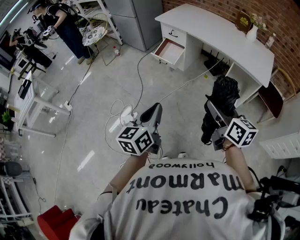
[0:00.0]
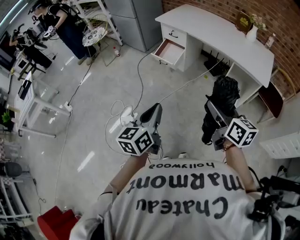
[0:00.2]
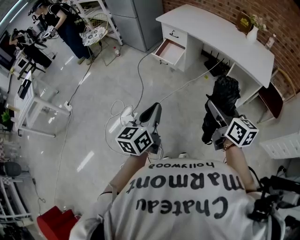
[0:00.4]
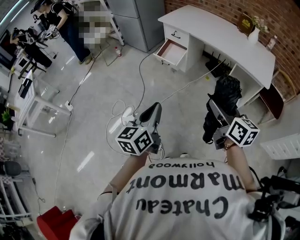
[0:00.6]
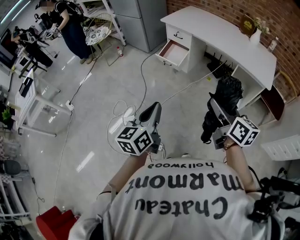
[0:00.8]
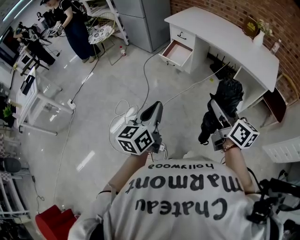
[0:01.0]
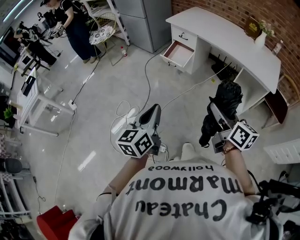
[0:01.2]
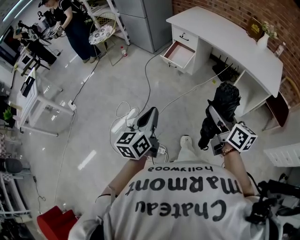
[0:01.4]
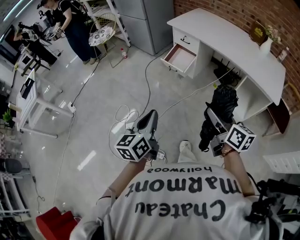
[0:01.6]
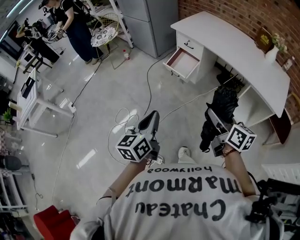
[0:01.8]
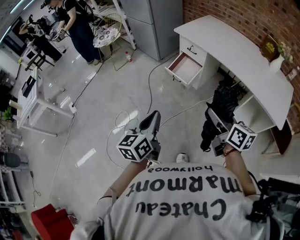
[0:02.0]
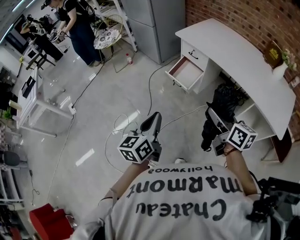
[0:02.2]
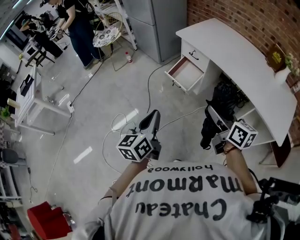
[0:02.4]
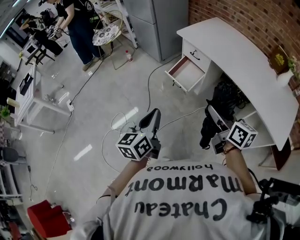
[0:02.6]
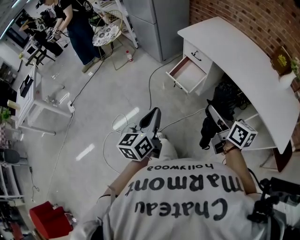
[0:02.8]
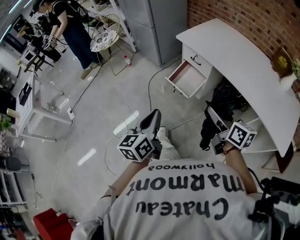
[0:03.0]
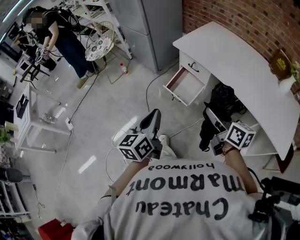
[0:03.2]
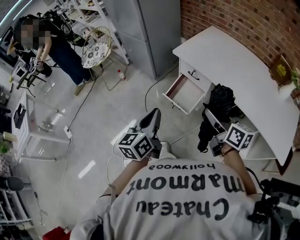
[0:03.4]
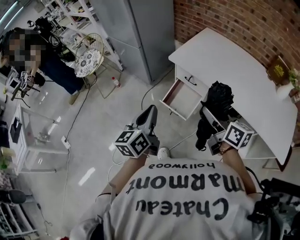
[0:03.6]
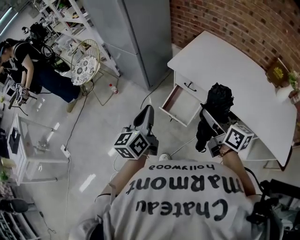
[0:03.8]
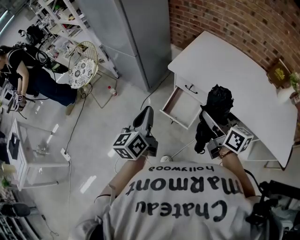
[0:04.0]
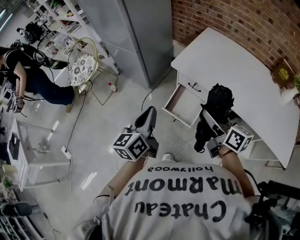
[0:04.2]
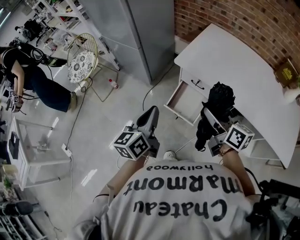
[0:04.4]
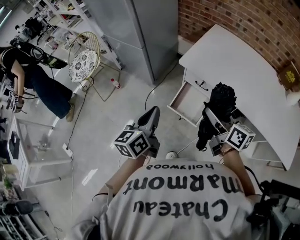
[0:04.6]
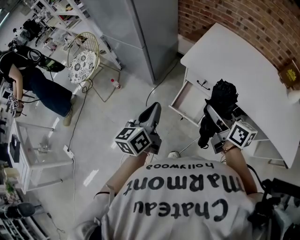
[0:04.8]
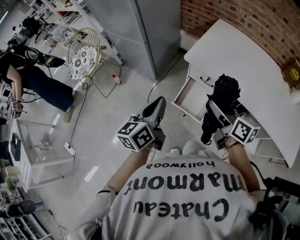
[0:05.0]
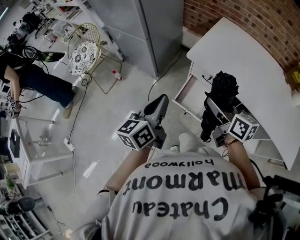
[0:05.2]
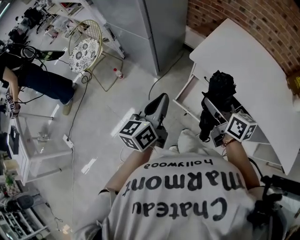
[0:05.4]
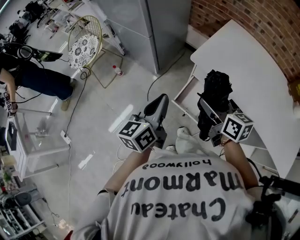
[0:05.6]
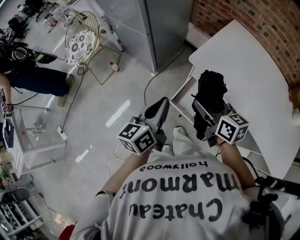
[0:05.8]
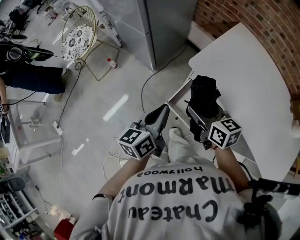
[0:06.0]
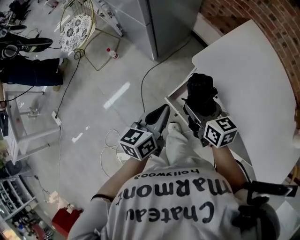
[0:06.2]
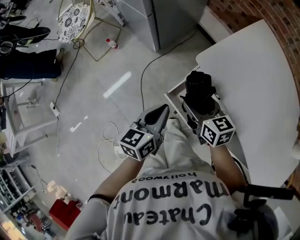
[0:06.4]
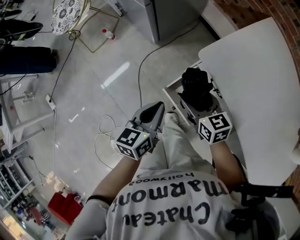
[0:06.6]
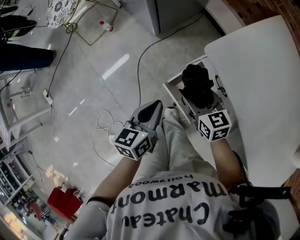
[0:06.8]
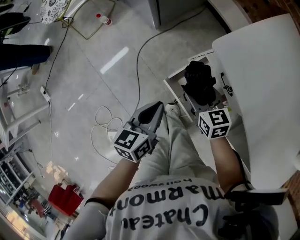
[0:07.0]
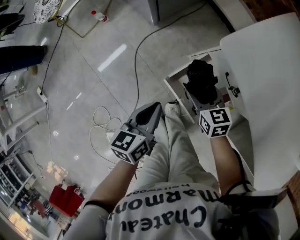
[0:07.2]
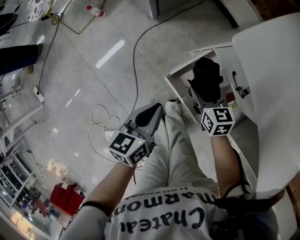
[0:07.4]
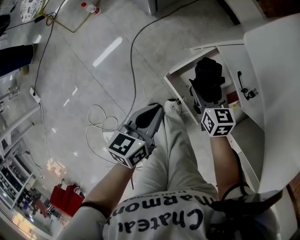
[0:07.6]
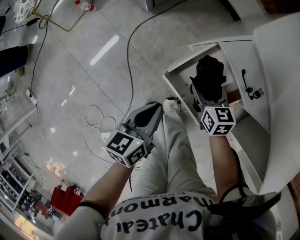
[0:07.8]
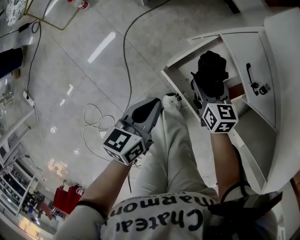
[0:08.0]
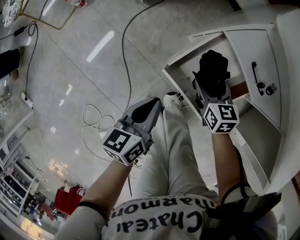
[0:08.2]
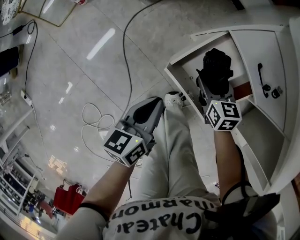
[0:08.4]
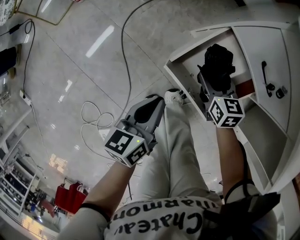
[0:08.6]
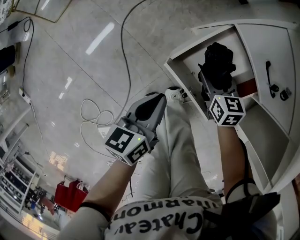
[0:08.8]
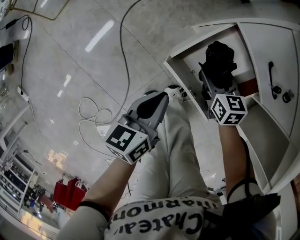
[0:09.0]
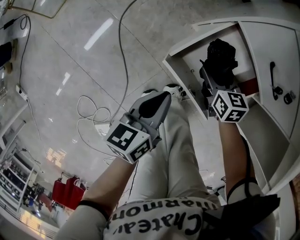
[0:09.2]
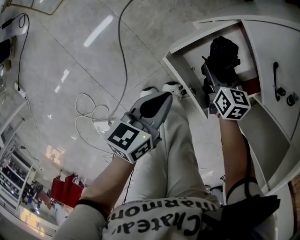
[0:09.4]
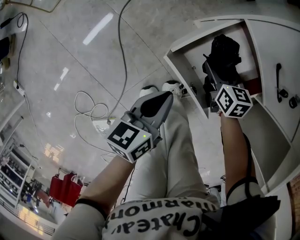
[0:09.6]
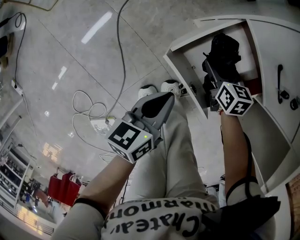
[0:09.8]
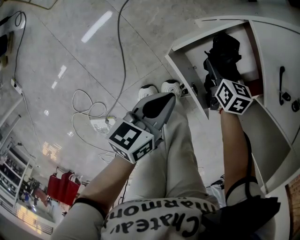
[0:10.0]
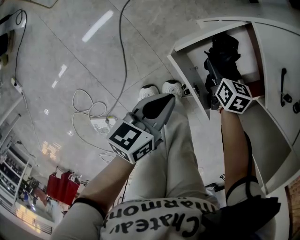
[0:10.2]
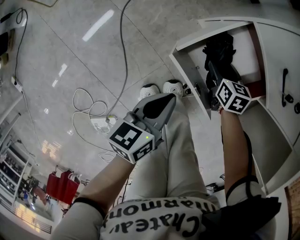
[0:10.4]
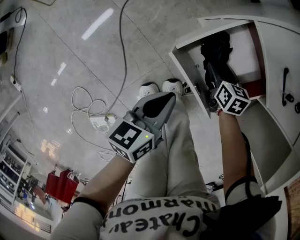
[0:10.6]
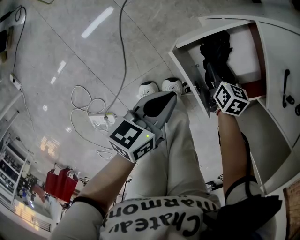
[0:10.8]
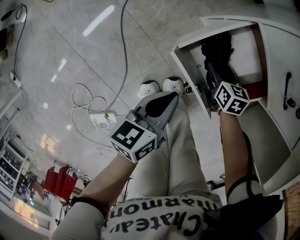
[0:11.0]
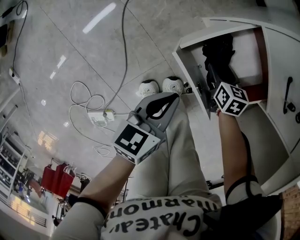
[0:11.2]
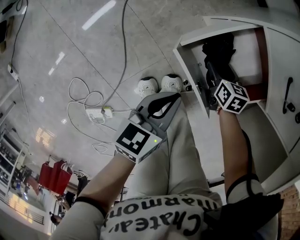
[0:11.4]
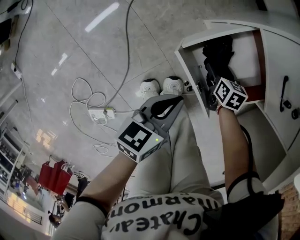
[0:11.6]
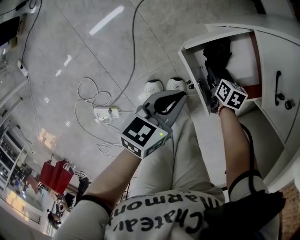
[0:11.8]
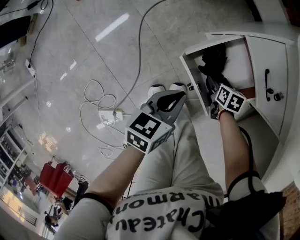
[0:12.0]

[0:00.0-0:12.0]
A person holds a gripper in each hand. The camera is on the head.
0:00.0 to 0:01.6: The right gripper heads forward and to the left, covering roughly 10 cm, while the left gripper goes approximately 10 cm to the left and forward.
0:01.6 to 0:03.0: Both grippers move forward, roughly 30 cm.
0:03.0 to 0:04.4: Both grippers move forward, some 30 cm.
0:04.4 to 0:06.0: The right gripper shifts about 20 cm forward, downward and to the left, and swivels roughly 30 degrees, while the left gripper shifts some 15 cm forward and downward.
0:06.0 to 0:07.6: Both grippers travel together downward, roughly 35 cm.
0:07.6 to 0:09.0: The grippers both shift downward by roughly 10 cm.
0:09.0 to 0:10.4: The right gripper goes about 5 cm downward.
0:10.4 to 0:12.0: The right gripper changes place by approximately 5 cm. The left gripper goes approximately 5 cm upward.

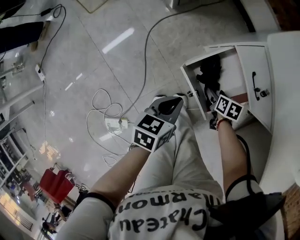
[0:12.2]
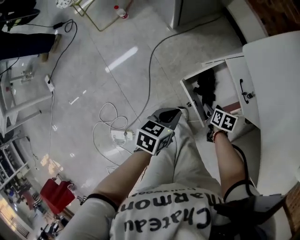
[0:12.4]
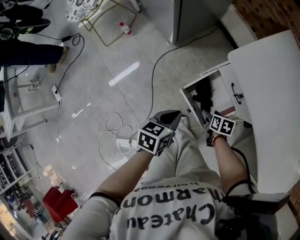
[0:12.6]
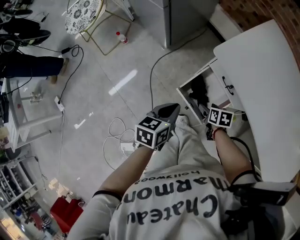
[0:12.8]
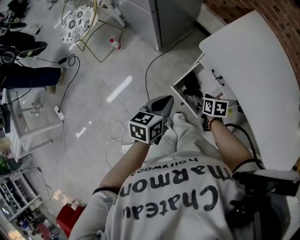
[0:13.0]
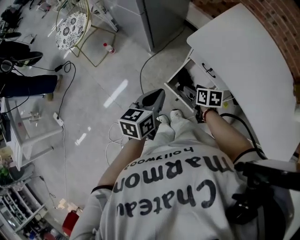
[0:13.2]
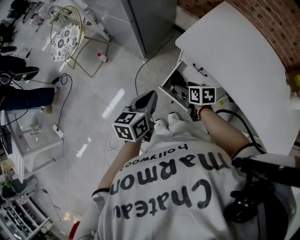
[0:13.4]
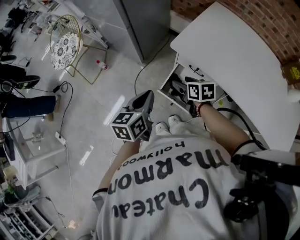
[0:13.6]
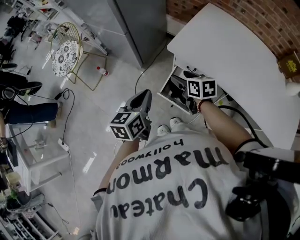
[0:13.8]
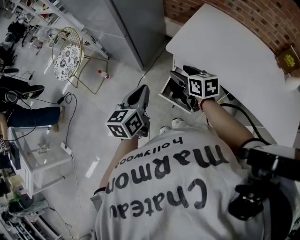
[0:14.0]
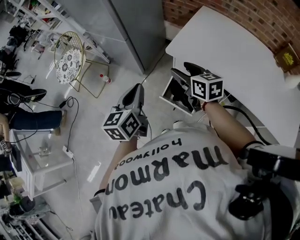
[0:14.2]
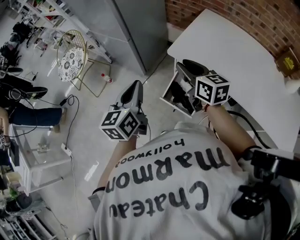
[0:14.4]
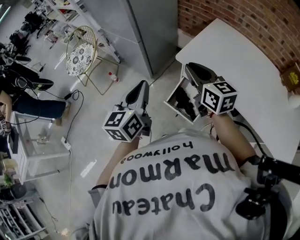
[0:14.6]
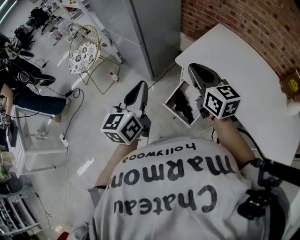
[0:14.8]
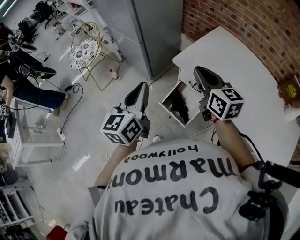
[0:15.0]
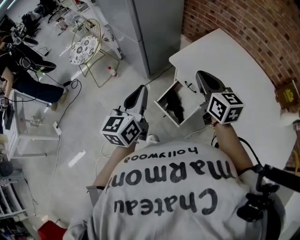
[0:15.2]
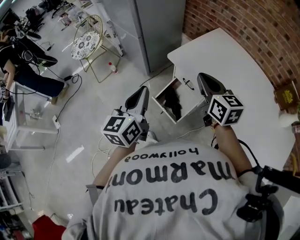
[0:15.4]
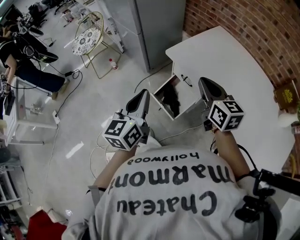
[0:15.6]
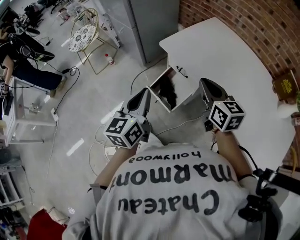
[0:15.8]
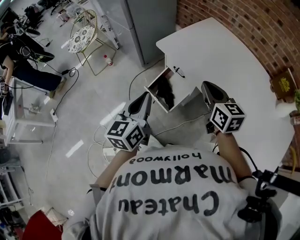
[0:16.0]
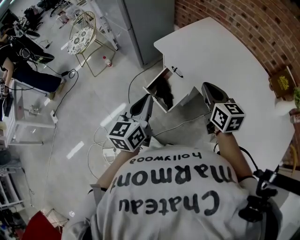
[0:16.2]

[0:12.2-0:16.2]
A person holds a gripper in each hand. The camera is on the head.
0:12.2 to 0:13.6: The two grippers go approximately 35 cm upward. The left gripper changes its angle by approximately 20 degrees, while the right gripper turns by roughly 30 degrees.
0:13.6 to 0:14.8: The right gripper moves upward, roughly 25 cm, tilts its fingers about 30 degrees upward, and closes up, while the left gripper is displaced upward by about 15 cm, and swivels some 30 degrees.
0:14.8 to 0:16.2: The grippers both shift to the right and backward by roughly 25 cm.

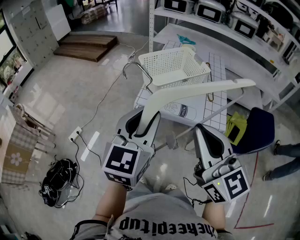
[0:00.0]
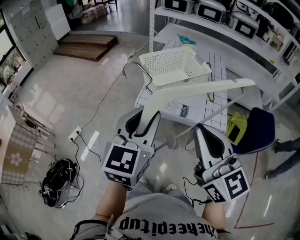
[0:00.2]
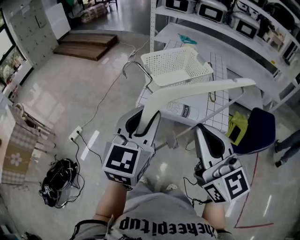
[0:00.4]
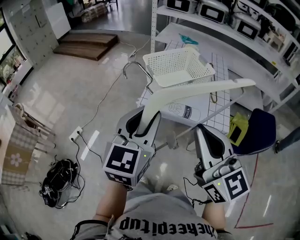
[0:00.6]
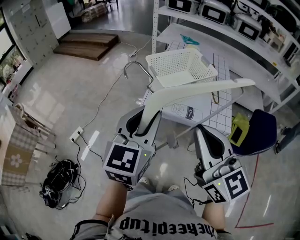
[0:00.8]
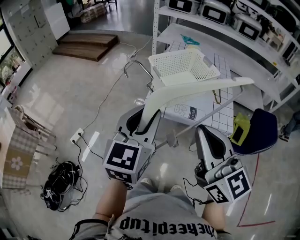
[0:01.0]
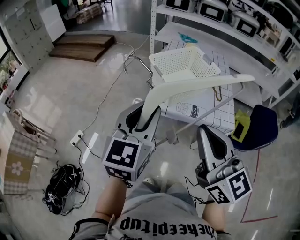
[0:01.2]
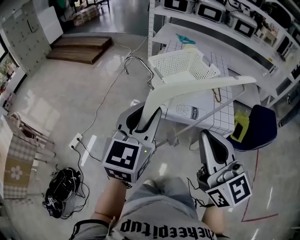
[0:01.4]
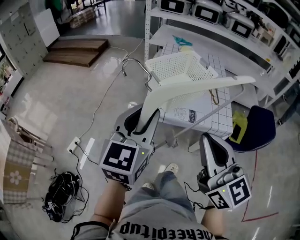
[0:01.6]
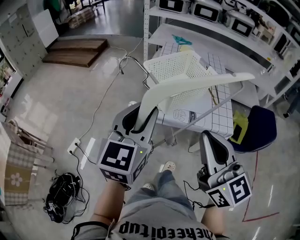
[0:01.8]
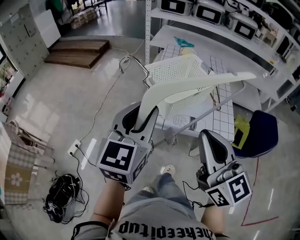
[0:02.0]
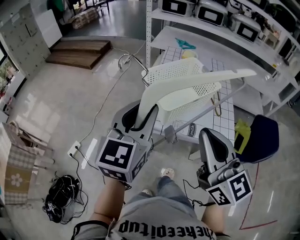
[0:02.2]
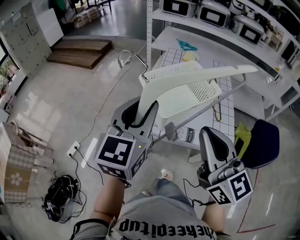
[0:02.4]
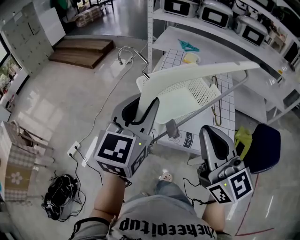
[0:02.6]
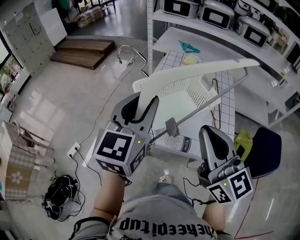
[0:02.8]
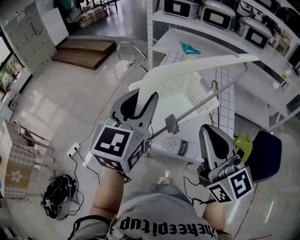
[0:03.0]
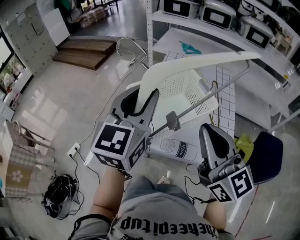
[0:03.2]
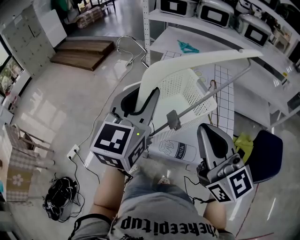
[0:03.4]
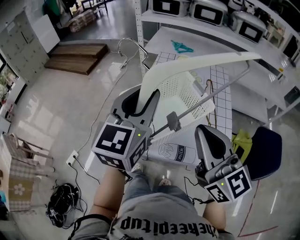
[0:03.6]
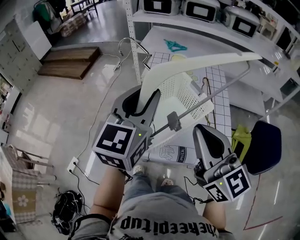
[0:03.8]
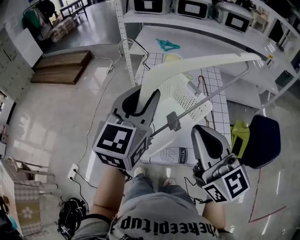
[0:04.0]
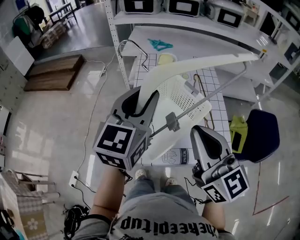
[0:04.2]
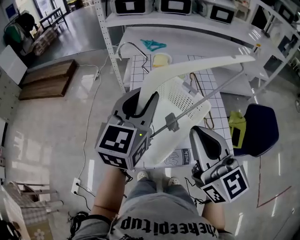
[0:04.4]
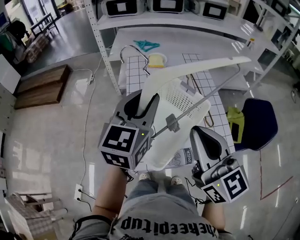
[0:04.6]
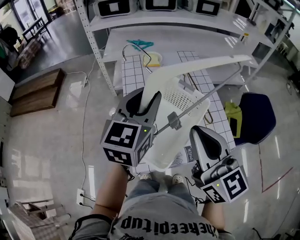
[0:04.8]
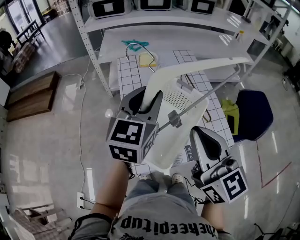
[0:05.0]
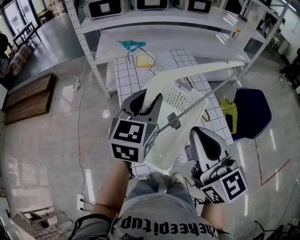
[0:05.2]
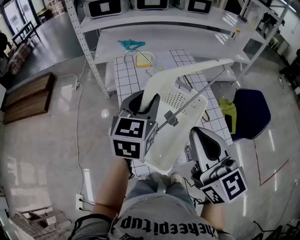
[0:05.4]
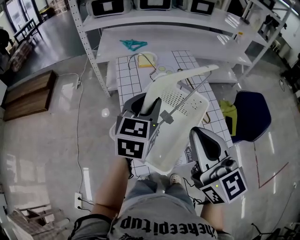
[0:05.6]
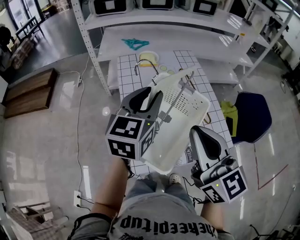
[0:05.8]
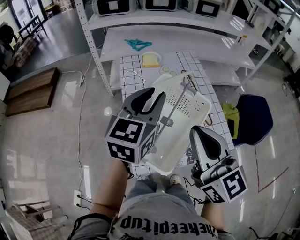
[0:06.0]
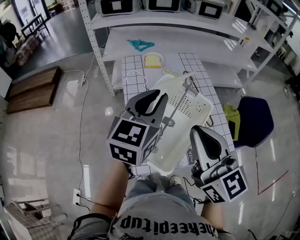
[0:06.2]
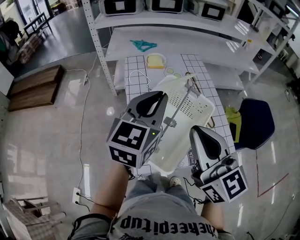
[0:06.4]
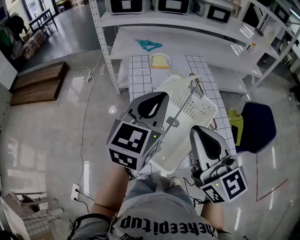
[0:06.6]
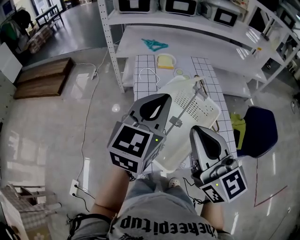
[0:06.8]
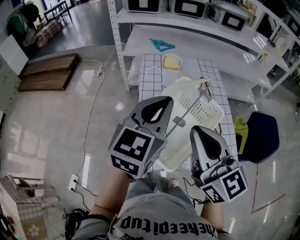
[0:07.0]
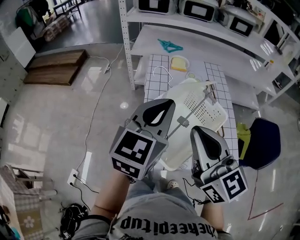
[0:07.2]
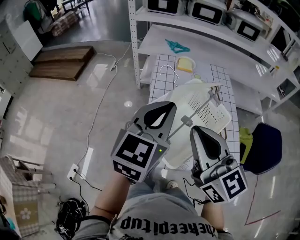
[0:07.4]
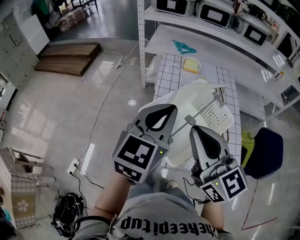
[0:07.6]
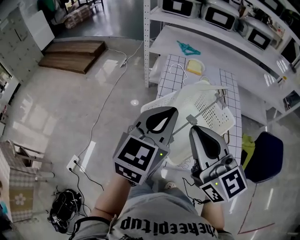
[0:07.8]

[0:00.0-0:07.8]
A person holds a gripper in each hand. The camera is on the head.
0:00.0 to 0:01.6: The left gripper travels to the left and forward by roughly 10 cm; the right gripper heads to the left, covering approximately 5 cm.
0:01.6 to 0:03.2: Both grippers move forward and to the right, roughly 25 cm.
0:03.2 to 0:04.6: The right gripper moves forward and to the left, some 10 cm, and turns by roughly 20 degrees. Meanwhile the left gripper goes approximately 15 cm forward, and changes its angle by approximately 30 degrees.
0:06.2 to 0:07.8: The left gripper heads backward and to the left, covering roughly 10 cm. Meanwhile the right gripper heads to the left, covering approximately 5 cm, and turns by about 20 degrees.
